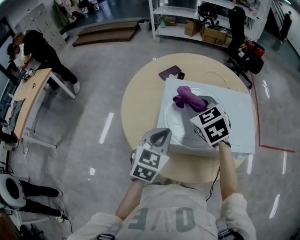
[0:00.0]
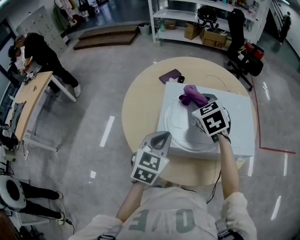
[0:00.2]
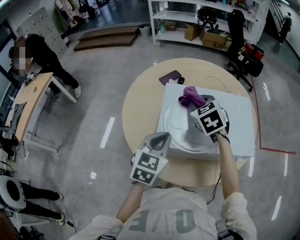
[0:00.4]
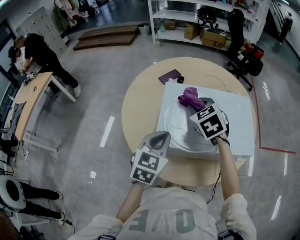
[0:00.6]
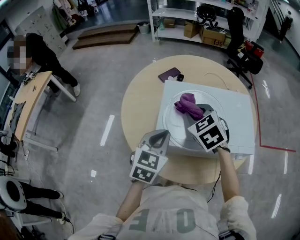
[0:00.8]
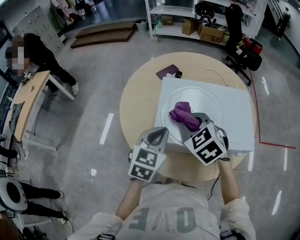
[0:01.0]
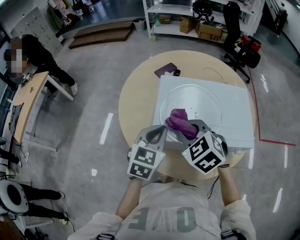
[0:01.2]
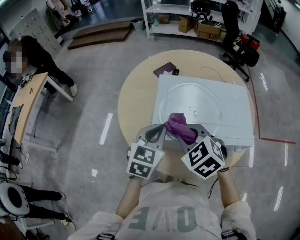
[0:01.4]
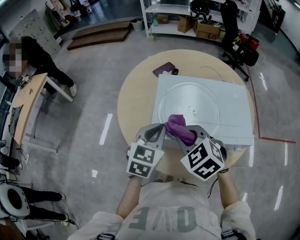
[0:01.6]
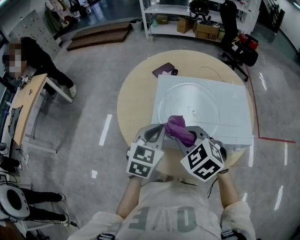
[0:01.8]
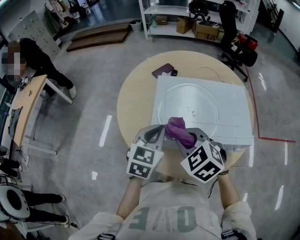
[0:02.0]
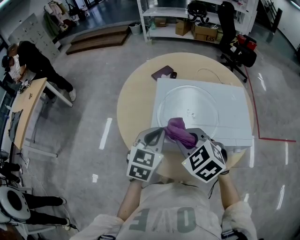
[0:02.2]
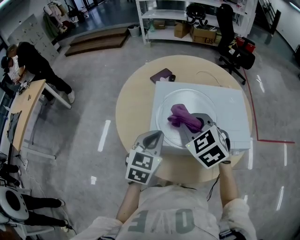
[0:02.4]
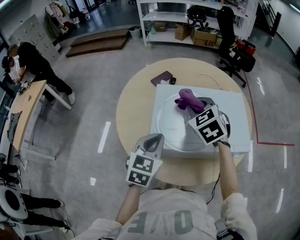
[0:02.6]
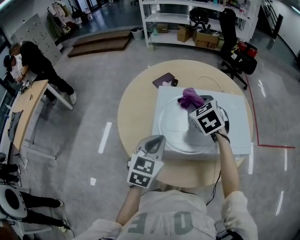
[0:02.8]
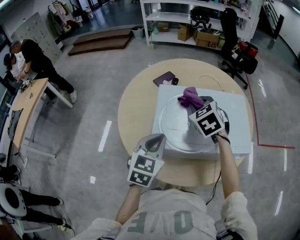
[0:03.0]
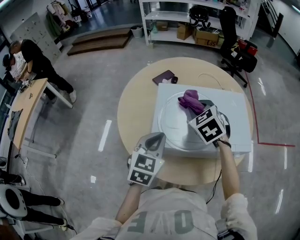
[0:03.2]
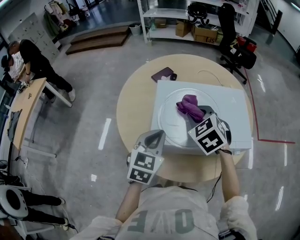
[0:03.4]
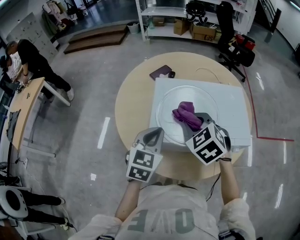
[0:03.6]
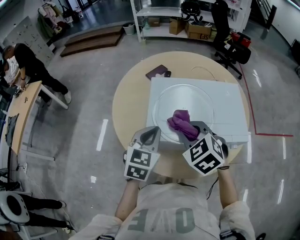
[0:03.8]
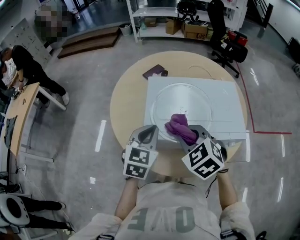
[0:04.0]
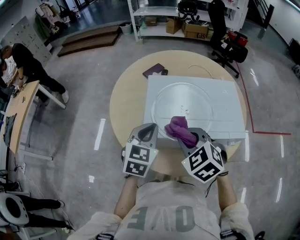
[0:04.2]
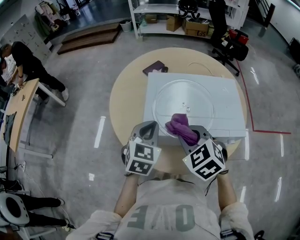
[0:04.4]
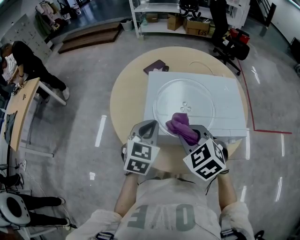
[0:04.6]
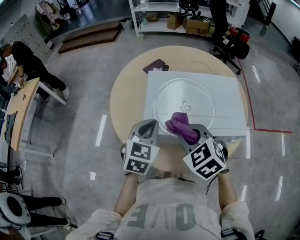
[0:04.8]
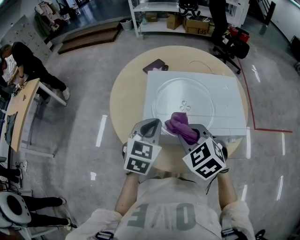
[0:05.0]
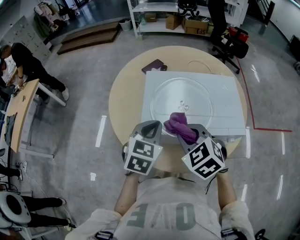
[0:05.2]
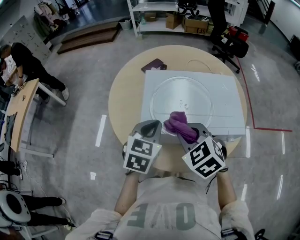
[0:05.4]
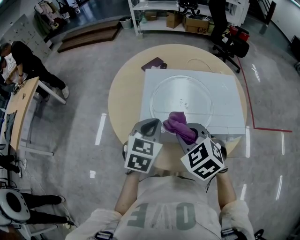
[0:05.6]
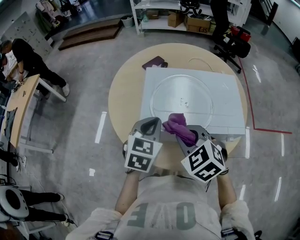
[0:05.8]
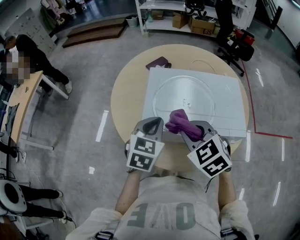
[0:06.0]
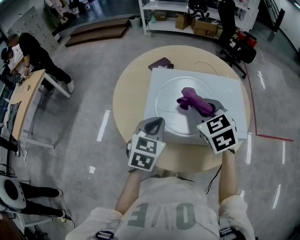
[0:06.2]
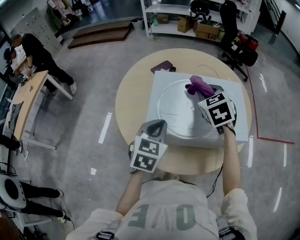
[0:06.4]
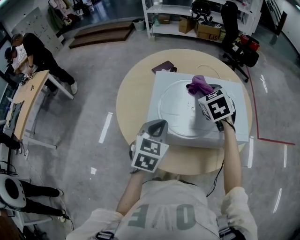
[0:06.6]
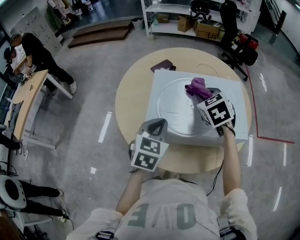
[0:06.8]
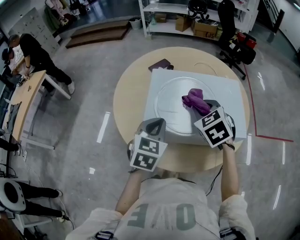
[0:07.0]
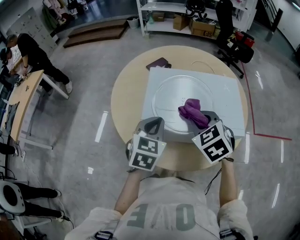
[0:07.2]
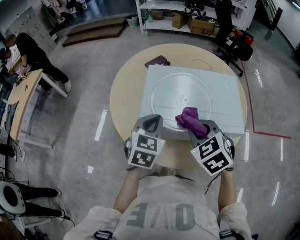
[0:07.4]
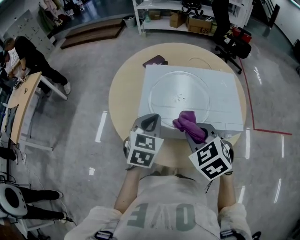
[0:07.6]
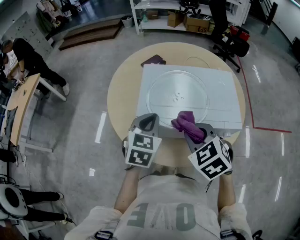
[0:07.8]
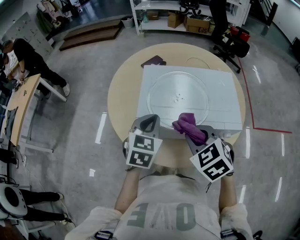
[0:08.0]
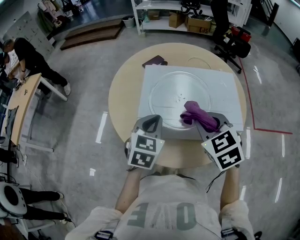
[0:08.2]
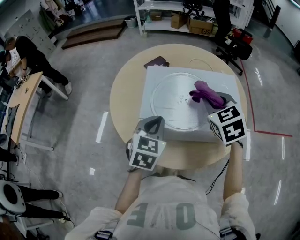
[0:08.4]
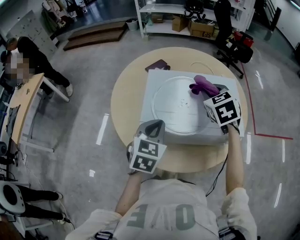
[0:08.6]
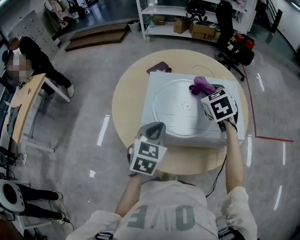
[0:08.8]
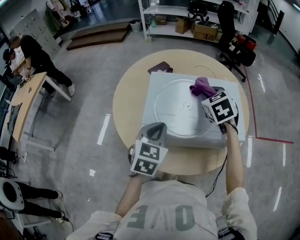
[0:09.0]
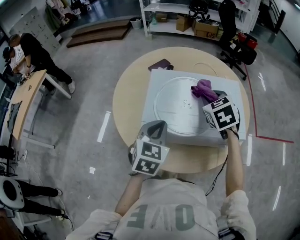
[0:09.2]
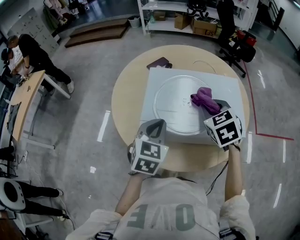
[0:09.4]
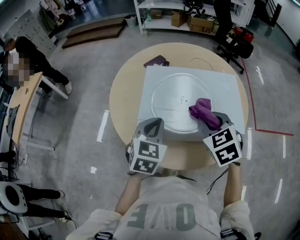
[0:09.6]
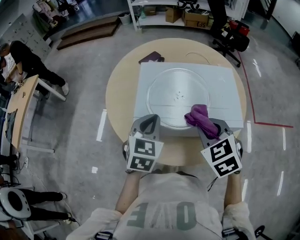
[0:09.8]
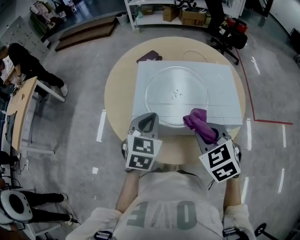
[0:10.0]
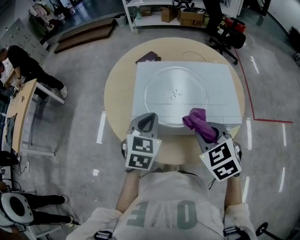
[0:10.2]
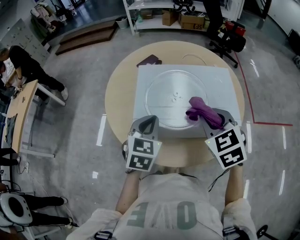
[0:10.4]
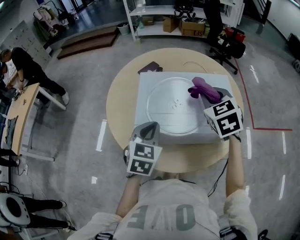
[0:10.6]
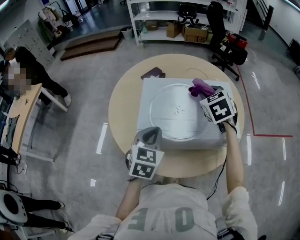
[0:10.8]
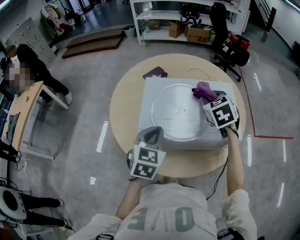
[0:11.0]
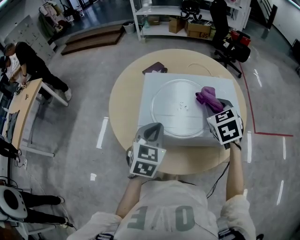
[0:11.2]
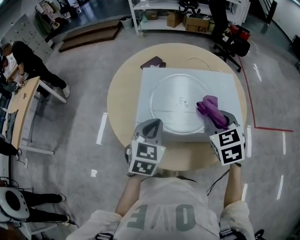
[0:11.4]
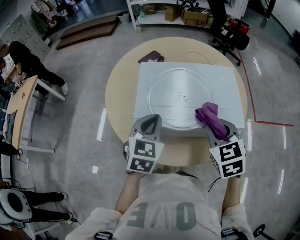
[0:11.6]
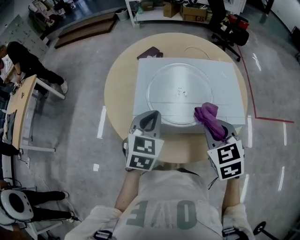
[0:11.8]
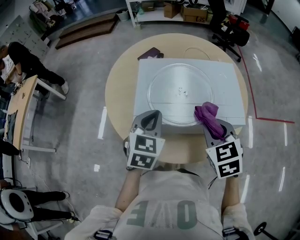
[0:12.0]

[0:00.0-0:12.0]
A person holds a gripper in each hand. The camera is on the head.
0.0 to 1.6 s: The right gripper moves backward, approximately 15 cm.
1.6 to 3.0 s: The right gripper heads forward and to the right, covering roughly 20 cm.
3.0 to 4.4 s: The right gripper travels backward by some 20 cm.
4.4 to 6.0 s: The grippers stay close to where they were, moving slightly.
6.0 to 7.6 s: The right gripper reaches about 15 cm forward, then returns.
7.6 to 9.0 s: The right gripper is displaced forward by roughly 20 cm.
9.0 to 10.4 s: The right gripper moves backward, about 15 cm.
10.4 to 12.0 s: The right gripper travels forward and back again, about 15 cm each way.

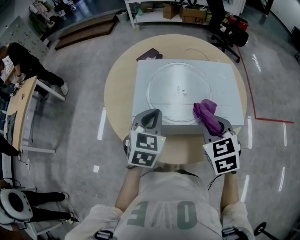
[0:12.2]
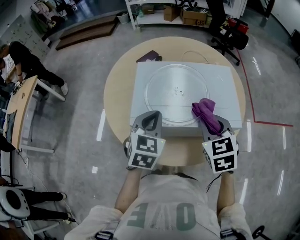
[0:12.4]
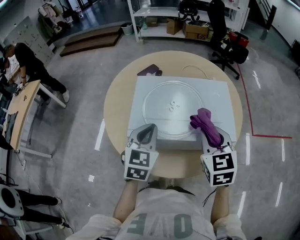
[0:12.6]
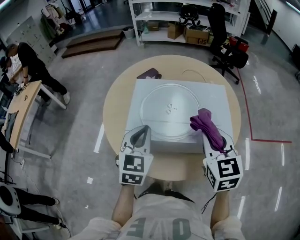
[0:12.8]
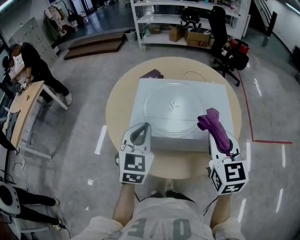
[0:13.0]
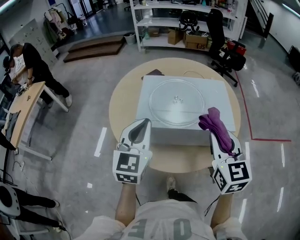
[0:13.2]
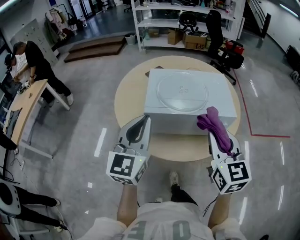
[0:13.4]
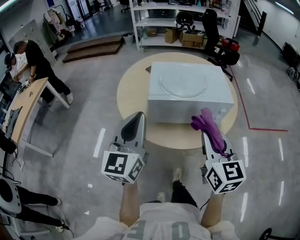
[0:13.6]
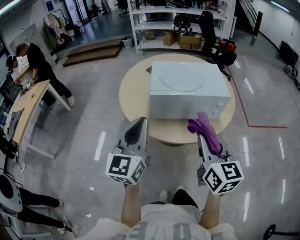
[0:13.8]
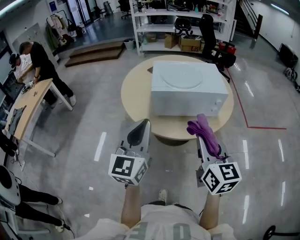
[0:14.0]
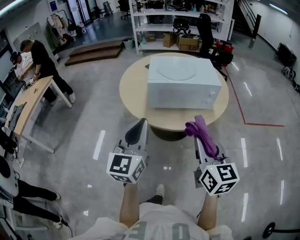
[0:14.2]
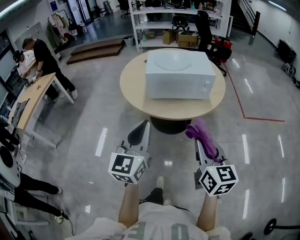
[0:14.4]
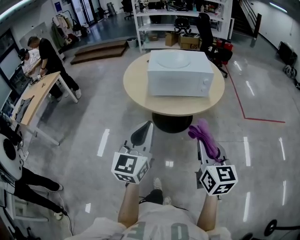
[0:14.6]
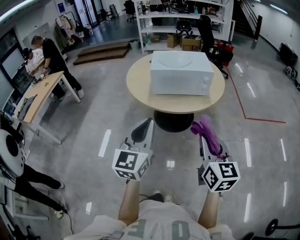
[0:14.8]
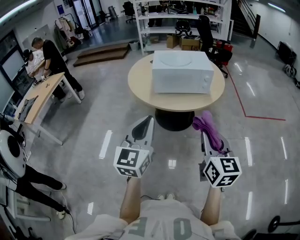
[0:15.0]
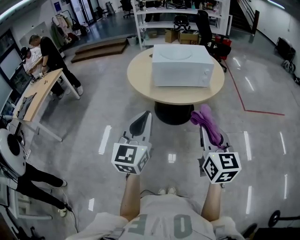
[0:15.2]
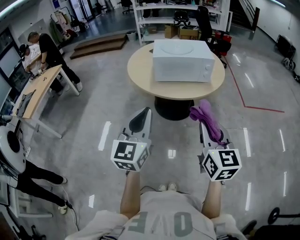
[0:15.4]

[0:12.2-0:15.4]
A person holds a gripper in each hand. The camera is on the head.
12.2 to 13.8 s: The left gripper shifts about 30 cm backward and upward, and points its fingers roughly 40 degrees further upward. Meanwhile the right gripper moves backward, some 25 cm, and points its fingers some 30 degrees further upward.
13.8 to 15.4 s: Both grippers move backward, roughly 30 cm.

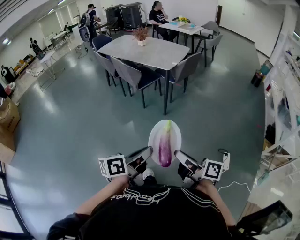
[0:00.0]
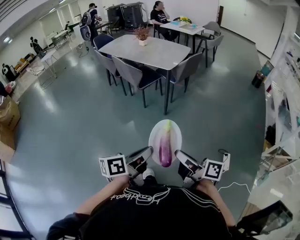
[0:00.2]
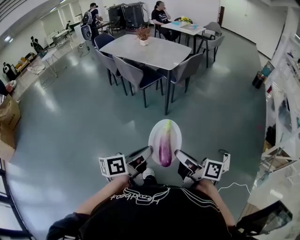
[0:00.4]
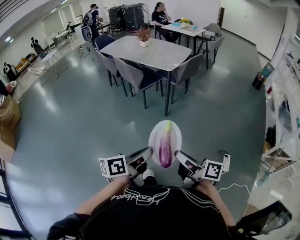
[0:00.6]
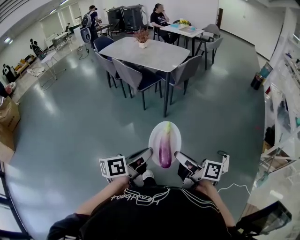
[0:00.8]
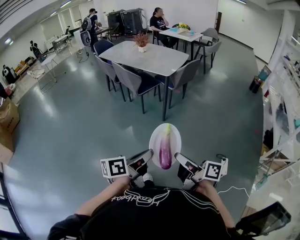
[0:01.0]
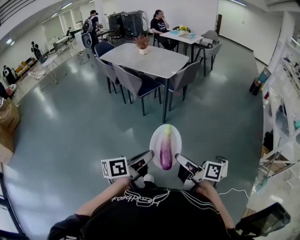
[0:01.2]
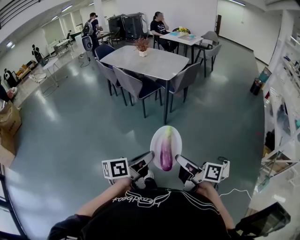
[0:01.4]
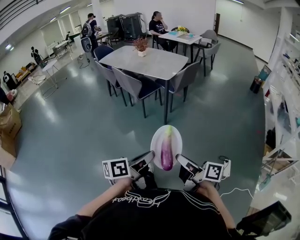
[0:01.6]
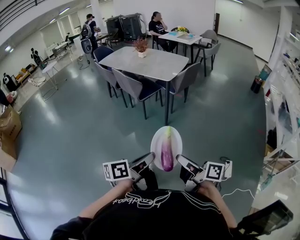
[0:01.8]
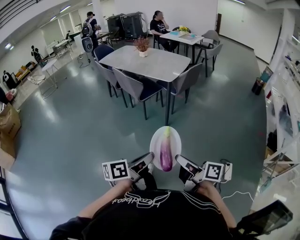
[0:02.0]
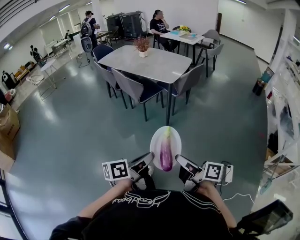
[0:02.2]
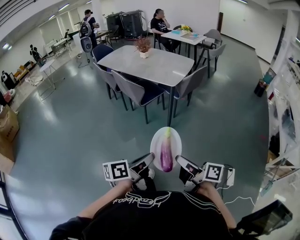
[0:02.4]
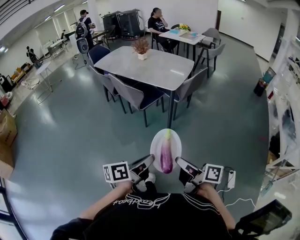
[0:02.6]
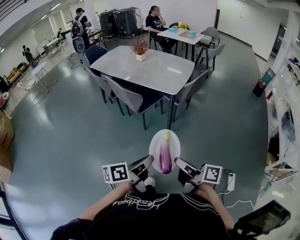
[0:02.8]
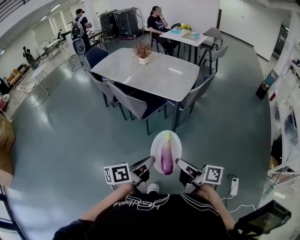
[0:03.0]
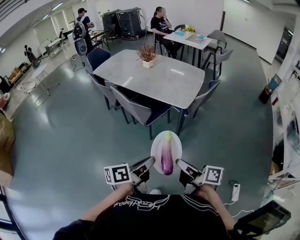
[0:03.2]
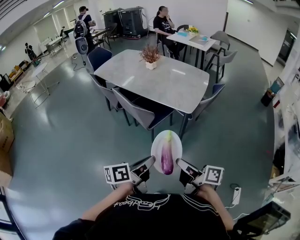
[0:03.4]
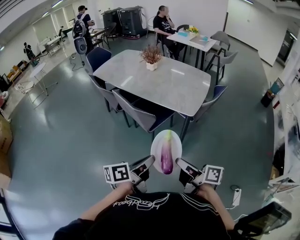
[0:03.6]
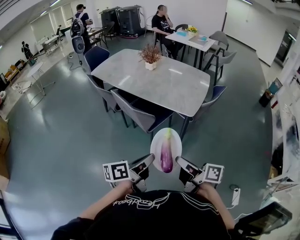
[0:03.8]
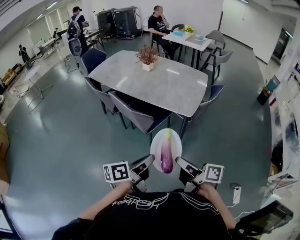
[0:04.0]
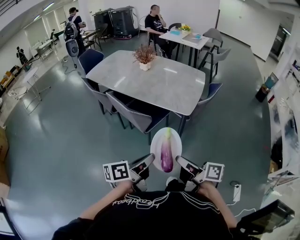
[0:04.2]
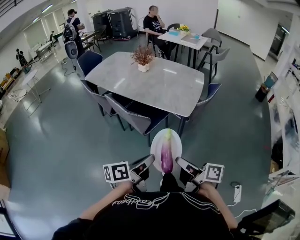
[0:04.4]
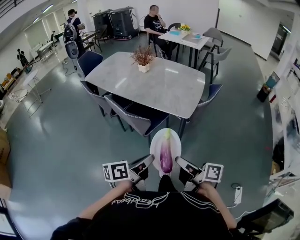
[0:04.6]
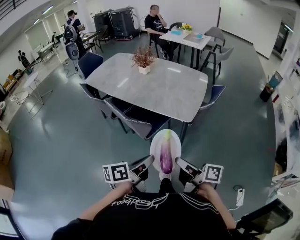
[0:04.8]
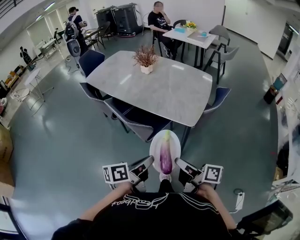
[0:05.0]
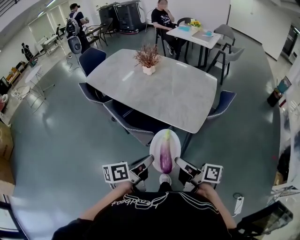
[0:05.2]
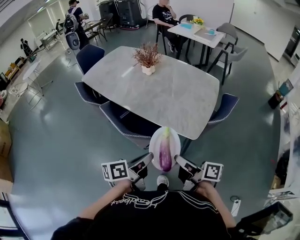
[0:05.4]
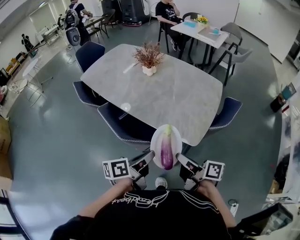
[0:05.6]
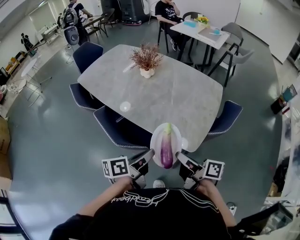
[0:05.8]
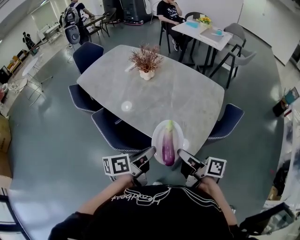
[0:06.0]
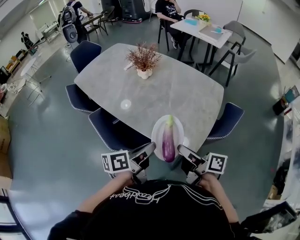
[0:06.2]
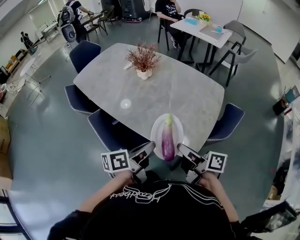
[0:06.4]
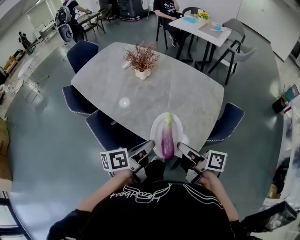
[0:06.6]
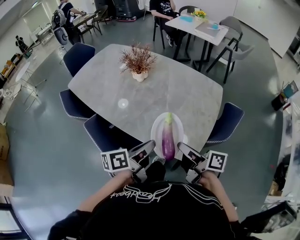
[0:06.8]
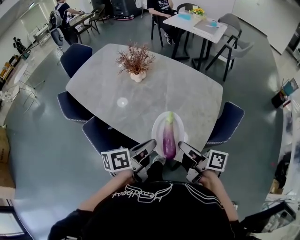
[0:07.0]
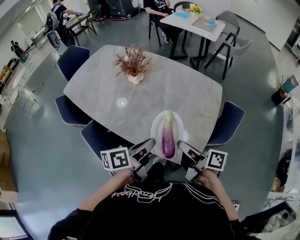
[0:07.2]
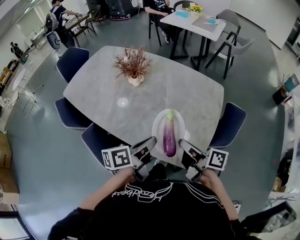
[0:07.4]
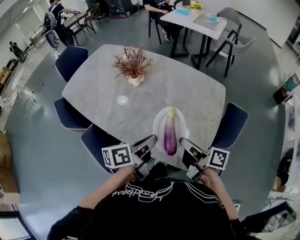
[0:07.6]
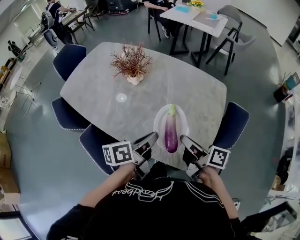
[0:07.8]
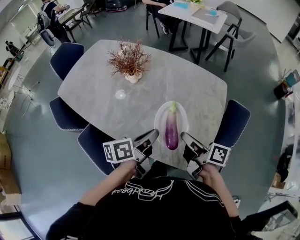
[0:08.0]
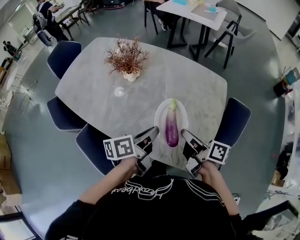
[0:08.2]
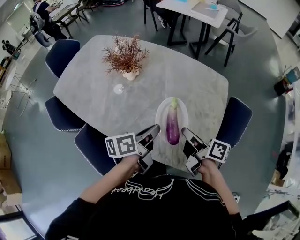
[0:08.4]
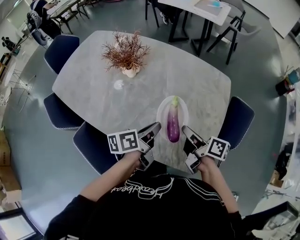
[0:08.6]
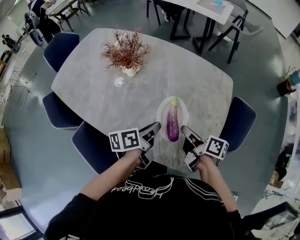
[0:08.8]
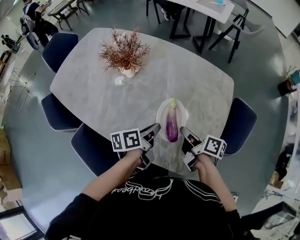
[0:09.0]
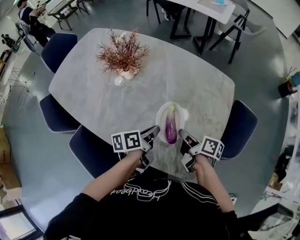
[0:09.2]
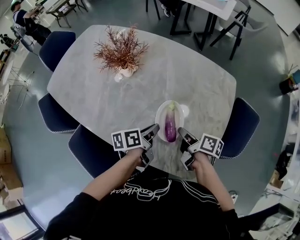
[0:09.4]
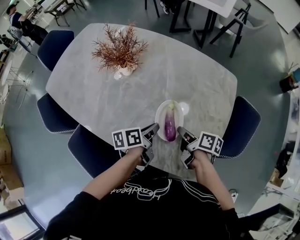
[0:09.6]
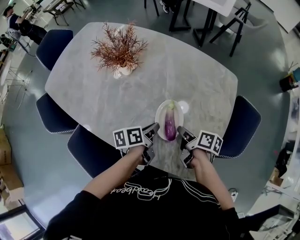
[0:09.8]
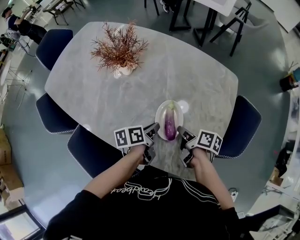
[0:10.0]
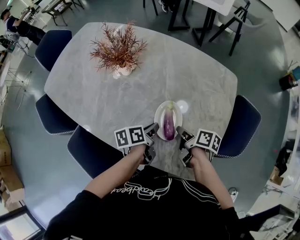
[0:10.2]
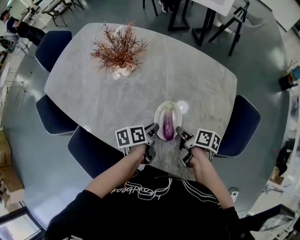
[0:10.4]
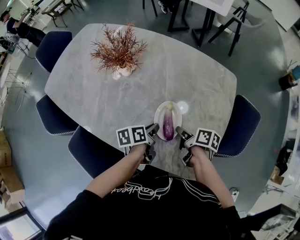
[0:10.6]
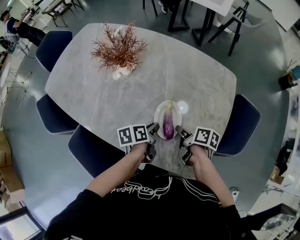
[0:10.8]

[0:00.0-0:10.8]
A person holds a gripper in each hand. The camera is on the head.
0.0 to 1.6 s: The grippers make only small movements.
1.6 to 3.0 s: Both grippers travel together forward, some 35 cm.
3.0 to 4.6 s: Both grippers move forward, about 20 cm.
4.6 to 6.2 s: The grippers both shift forward by some 35 cm.
6.2 to 7.8 s: Both grippers travel together forward, some 20 cm.
7.8 to 9.2 s: The two grippers go some 15 cm downward and forward. The right gripper rotates roughly 20 degrees.
9.2 to 10.8 s: The grippers both shift downward by about 5 cm.
